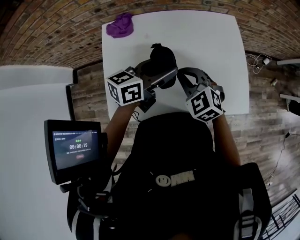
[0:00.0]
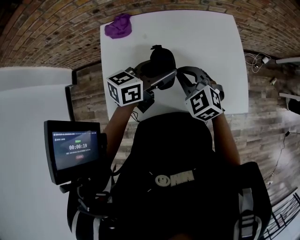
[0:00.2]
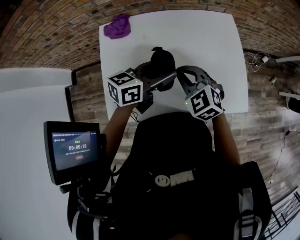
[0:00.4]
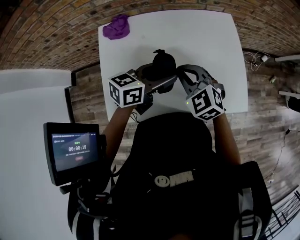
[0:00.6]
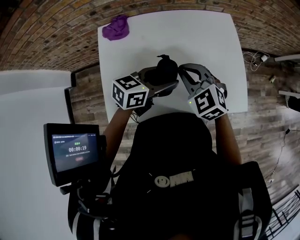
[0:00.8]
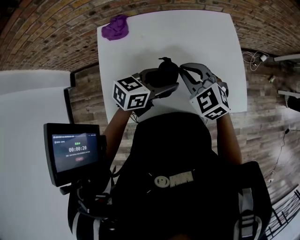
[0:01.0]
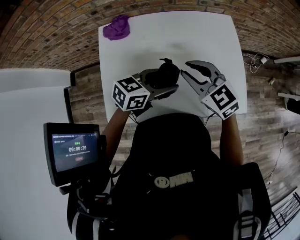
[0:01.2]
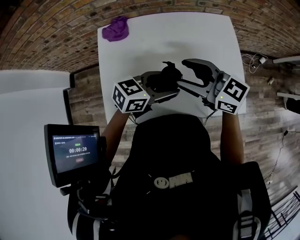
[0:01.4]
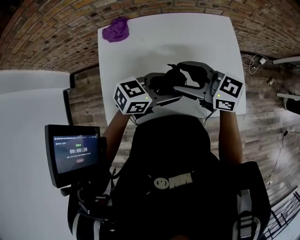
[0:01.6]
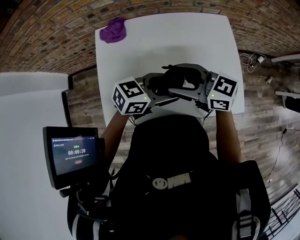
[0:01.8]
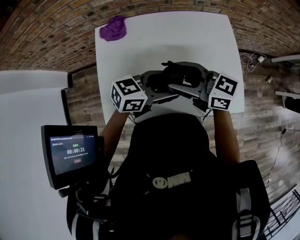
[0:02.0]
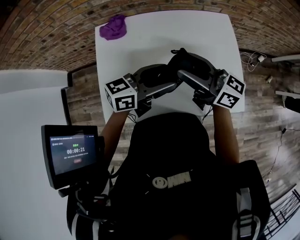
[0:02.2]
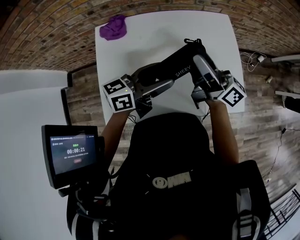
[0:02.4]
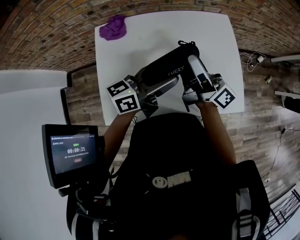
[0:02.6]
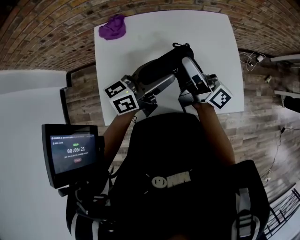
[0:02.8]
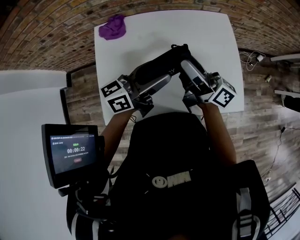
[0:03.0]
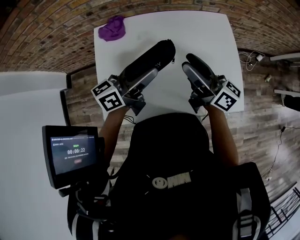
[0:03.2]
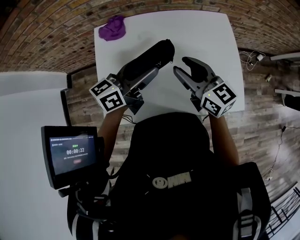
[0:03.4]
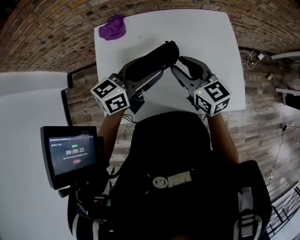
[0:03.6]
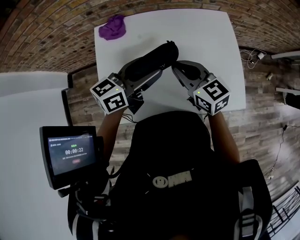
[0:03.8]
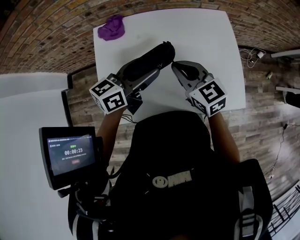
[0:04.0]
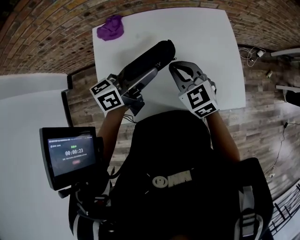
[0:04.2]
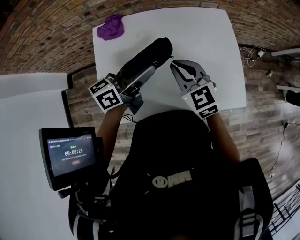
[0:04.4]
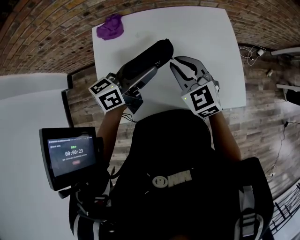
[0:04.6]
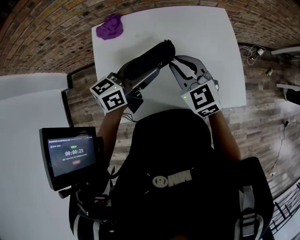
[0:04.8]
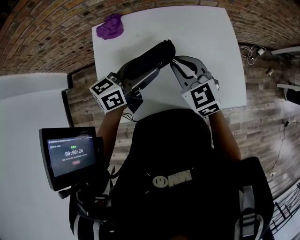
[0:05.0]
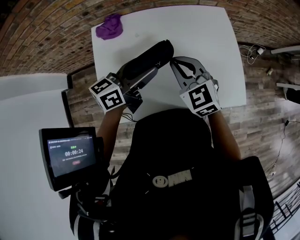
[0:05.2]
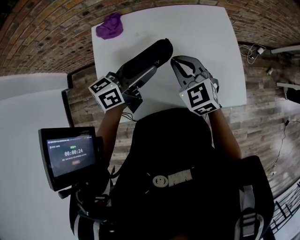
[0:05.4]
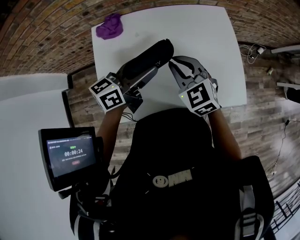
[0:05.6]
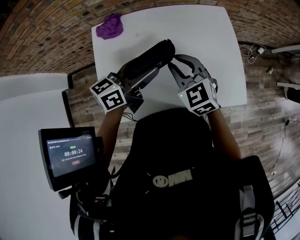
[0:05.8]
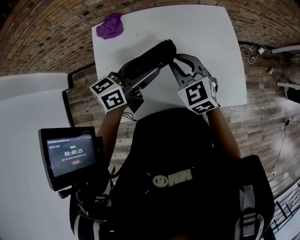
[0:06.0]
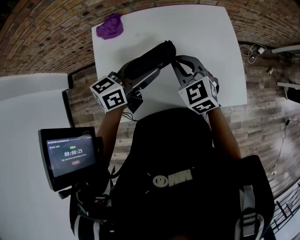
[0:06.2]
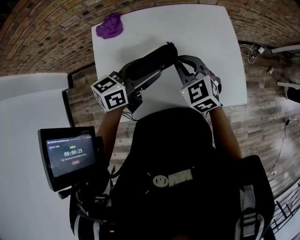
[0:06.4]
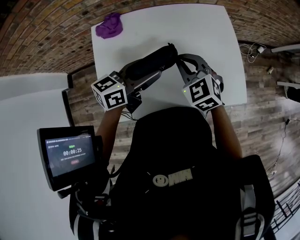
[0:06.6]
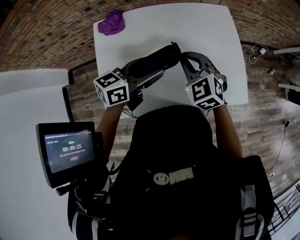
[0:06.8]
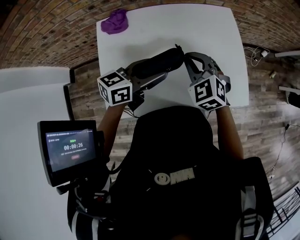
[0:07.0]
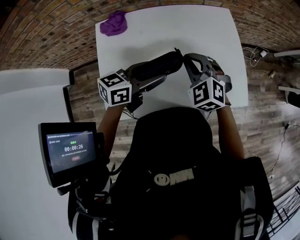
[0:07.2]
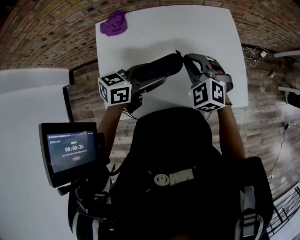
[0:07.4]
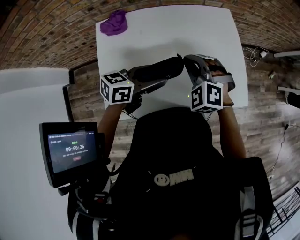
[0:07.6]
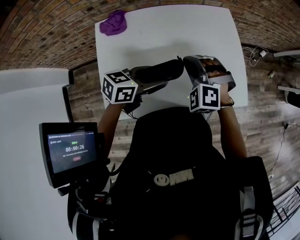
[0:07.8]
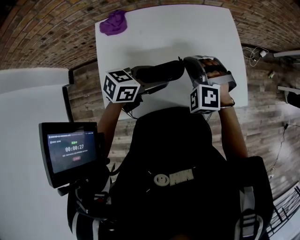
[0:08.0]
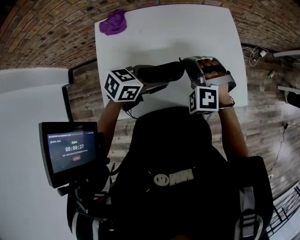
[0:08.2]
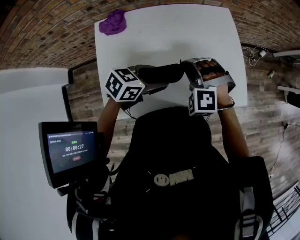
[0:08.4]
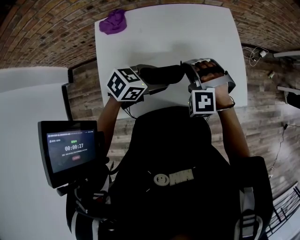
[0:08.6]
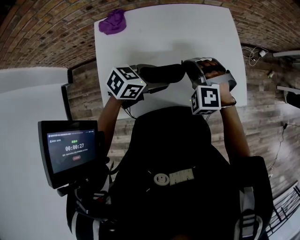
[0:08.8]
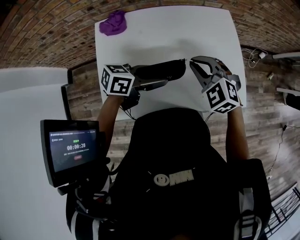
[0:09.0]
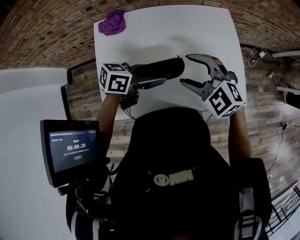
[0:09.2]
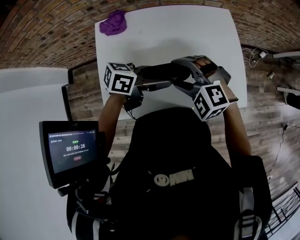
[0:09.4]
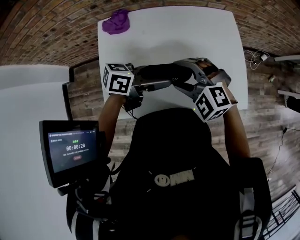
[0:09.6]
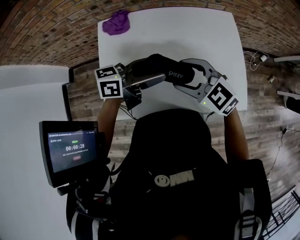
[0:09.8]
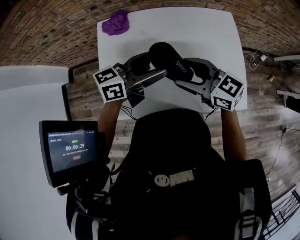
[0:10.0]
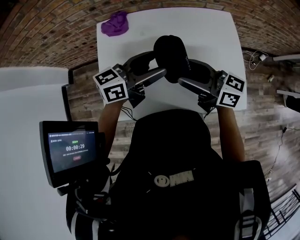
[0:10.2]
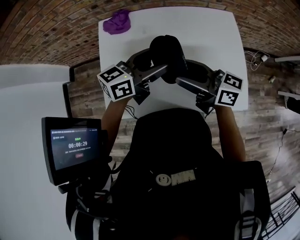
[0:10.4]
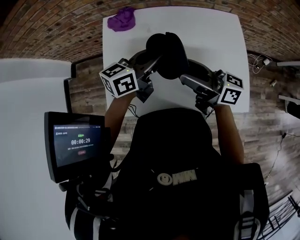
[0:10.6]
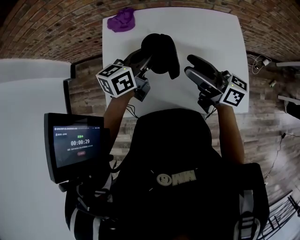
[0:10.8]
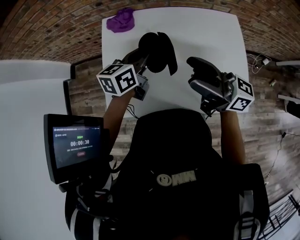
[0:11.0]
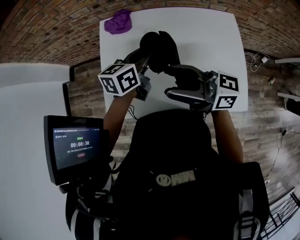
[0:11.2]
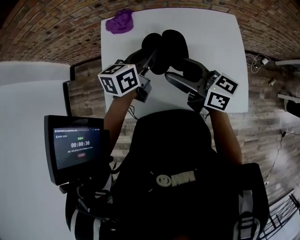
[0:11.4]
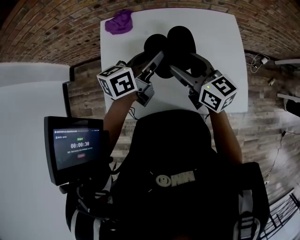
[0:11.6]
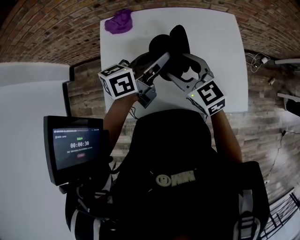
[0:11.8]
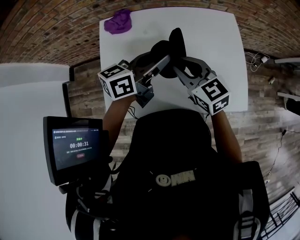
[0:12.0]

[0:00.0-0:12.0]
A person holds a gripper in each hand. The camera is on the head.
0:00.0 to 0:01.6: The right gripper moves upward, about 10 cm, rotates approximately 50 degrees, and opens up. The left gripper shifts by about 10 cm, and turns by approximately 30 degrees.
0:01.6 to 0:03.0: The right gripper shifts by approximately 5 cm, and tilts its fingers some 30 degrees upward. Meanwhile the left gripper shifts by approximately 10 cm, and turns by some 40 degrees.
0:03.0 to 0:04.4: The right gripper moves downward, some 10 cm, tips its fingers downward by roughly 50 degrees, and closes its fingers.
0:04.4 to 0:06.0: The grippers stay close to where they were, moving slightly.
0:06.0 to 0:07.6: The left gripper heads downward, covering about 5 cm, and rotates roughly 20 degrees; the right gripper turns by about 30 degrees.
0:09.0 to 0:10.4: The left gripper shifts approximately 5 cm upward, and turns by approximately 30 degrees; the right gripper moves about 10 cm, tilts its fingers approximately 40 degrees upward, and opens its fingers.
0:10.4 to 0:12.0: The left gripper closes; the right gripper swivels roughly 50 degrees, and closes its fingers.

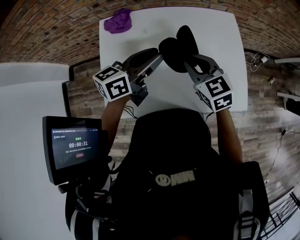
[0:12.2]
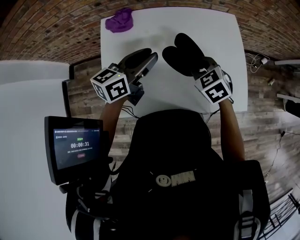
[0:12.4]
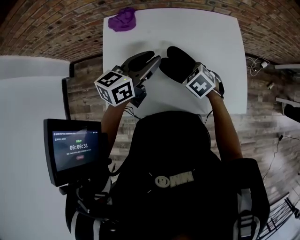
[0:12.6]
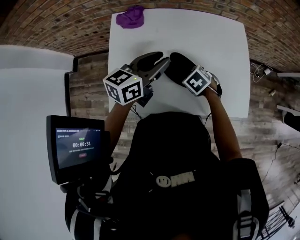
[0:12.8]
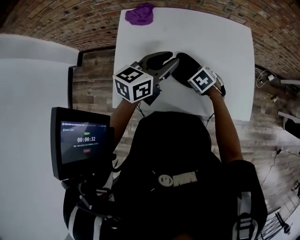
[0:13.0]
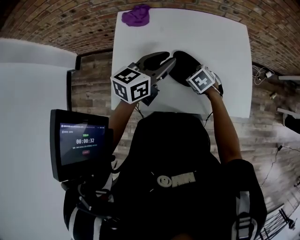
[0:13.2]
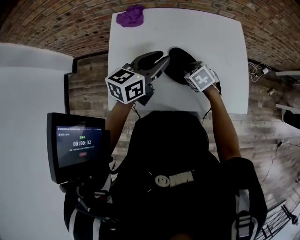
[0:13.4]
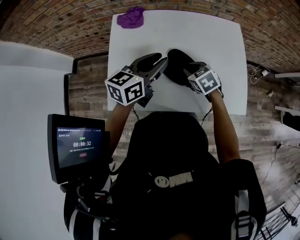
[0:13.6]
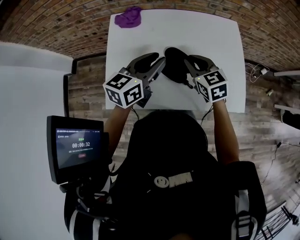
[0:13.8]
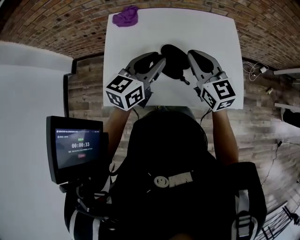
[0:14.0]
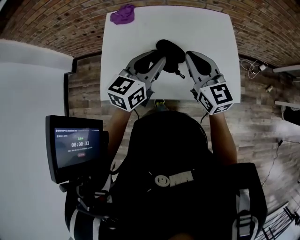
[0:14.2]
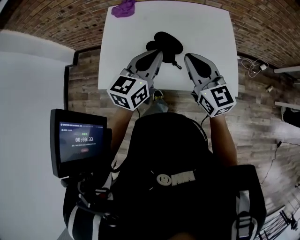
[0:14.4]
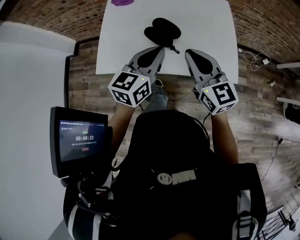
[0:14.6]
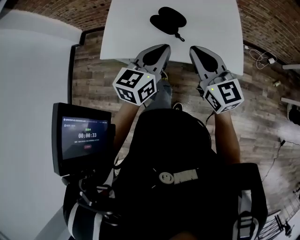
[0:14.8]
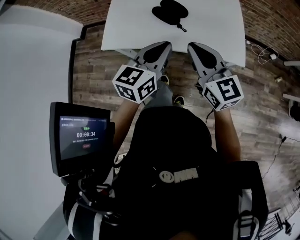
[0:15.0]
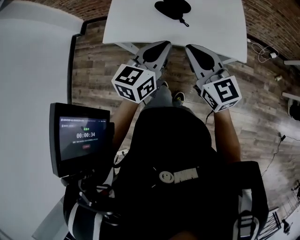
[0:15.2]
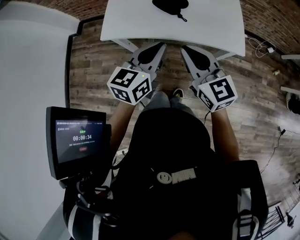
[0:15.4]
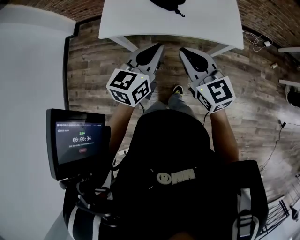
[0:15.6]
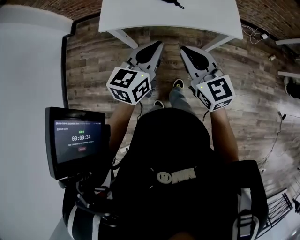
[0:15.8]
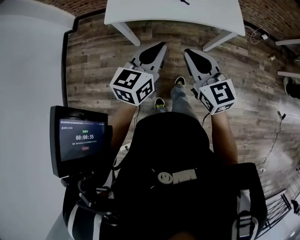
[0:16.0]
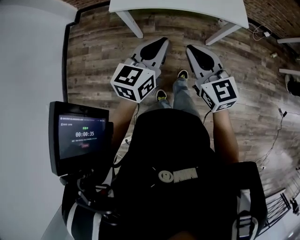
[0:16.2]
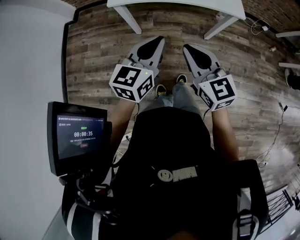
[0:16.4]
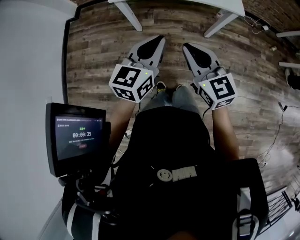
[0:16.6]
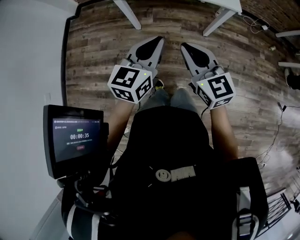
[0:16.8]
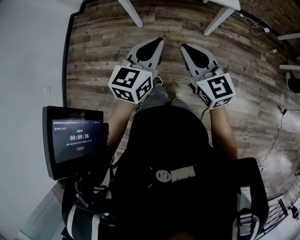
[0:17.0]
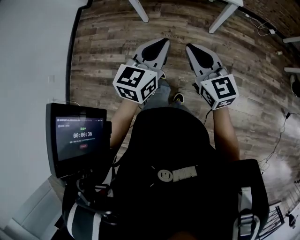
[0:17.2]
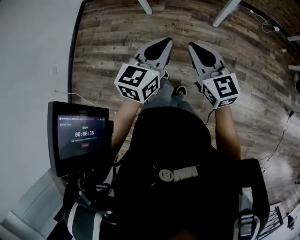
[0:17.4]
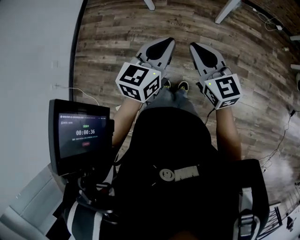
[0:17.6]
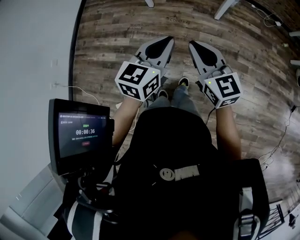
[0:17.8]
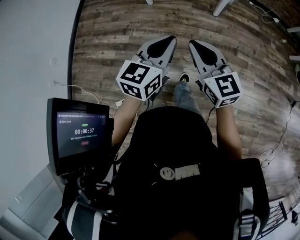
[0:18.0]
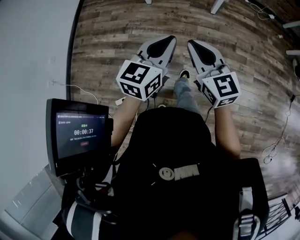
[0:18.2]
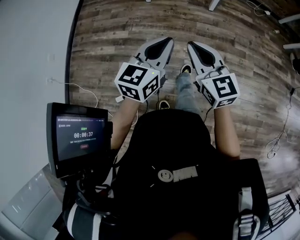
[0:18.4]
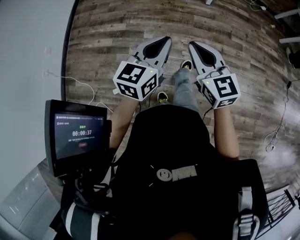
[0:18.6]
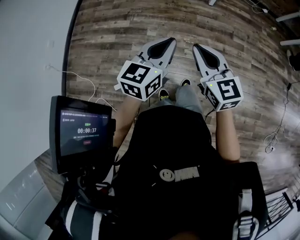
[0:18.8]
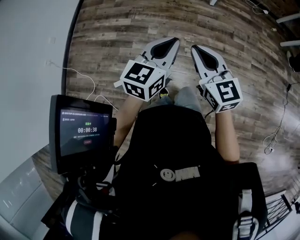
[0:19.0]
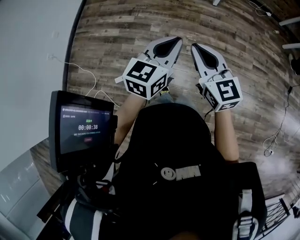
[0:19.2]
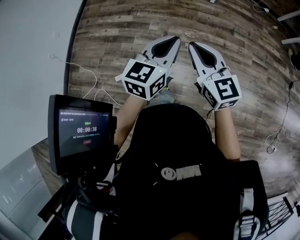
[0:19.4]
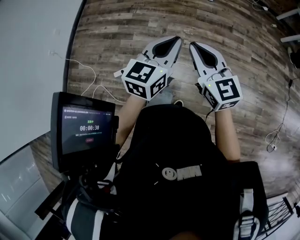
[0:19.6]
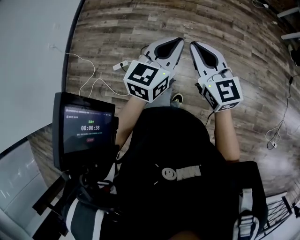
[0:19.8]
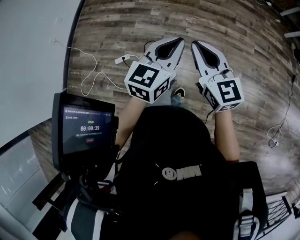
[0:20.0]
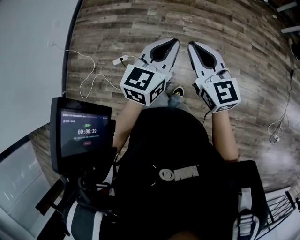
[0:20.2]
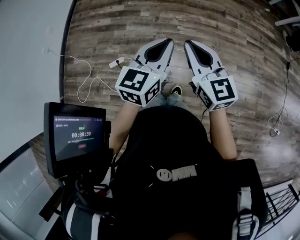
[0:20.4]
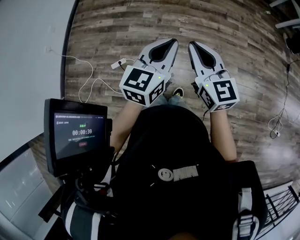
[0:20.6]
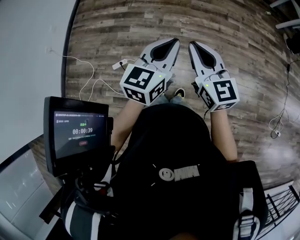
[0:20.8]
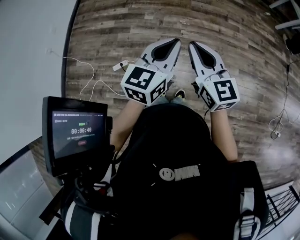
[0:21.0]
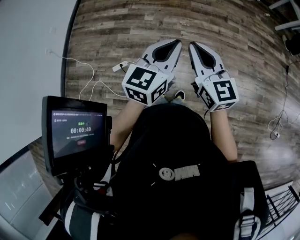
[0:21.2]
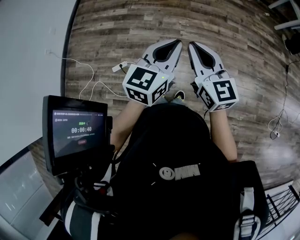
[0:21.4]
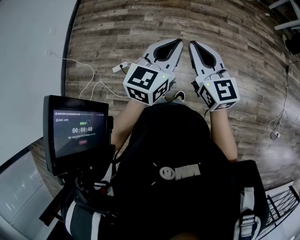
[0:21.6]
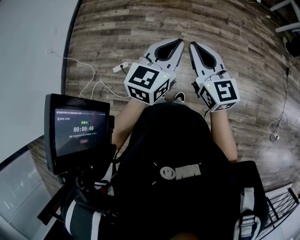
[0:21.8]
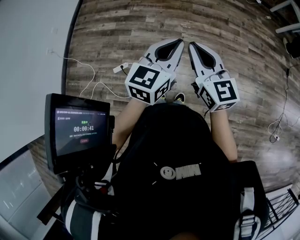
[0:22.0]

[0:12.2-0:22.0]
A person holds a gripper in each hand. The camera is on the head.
0:12.2 to 0:13.6: The right gripper is displaced downward by roughly 15 cm, and rotates approximately 20 degrees.
0:13.6 to 0:15.0: The left gripper travels backward by about 30 cm; the right gripper moves backward and upward, approximately 35 cm, and points its fingers about 50 degrees further upward.
0:15.0 to 0:16.4: The right gripper shifts about 30 cm backward. The left gripper goes about 30 cm backward and to the left.
0:16.4 to 0:17.8: Both grippers travel together backward, some 30 cm.
0:17.8 to 0:19.2: The two grippers go approximately 35 cm backward.
0:19.2 to 0:20.6: Both grippers move backward, roughly 20 cm.
0:20.6 to 0:22.0: Both grippers stay about where they are.

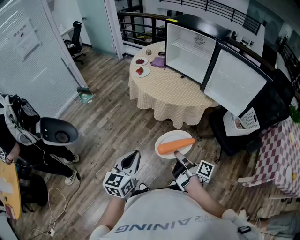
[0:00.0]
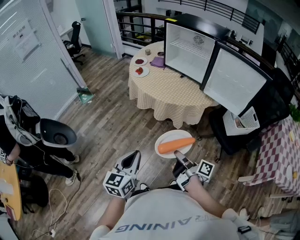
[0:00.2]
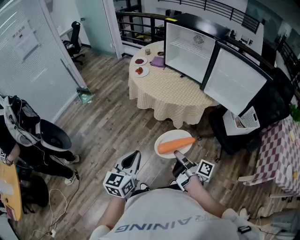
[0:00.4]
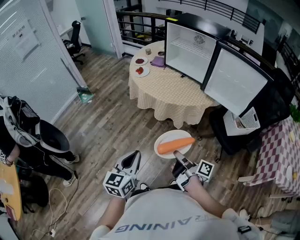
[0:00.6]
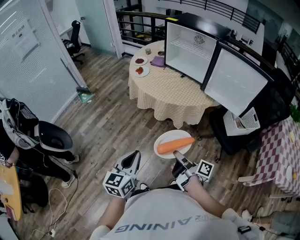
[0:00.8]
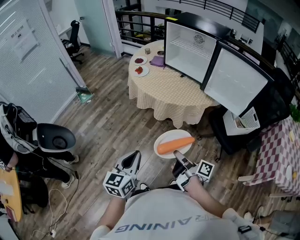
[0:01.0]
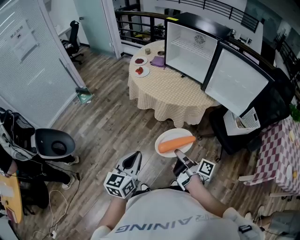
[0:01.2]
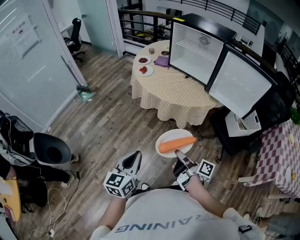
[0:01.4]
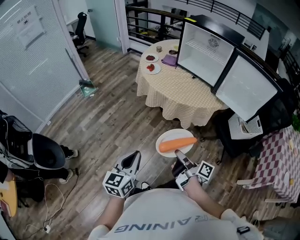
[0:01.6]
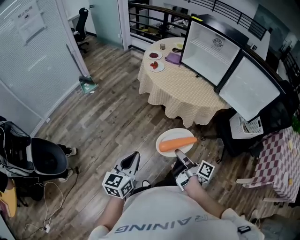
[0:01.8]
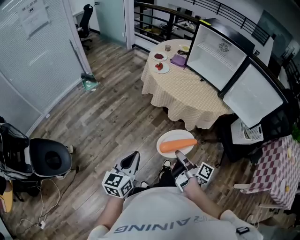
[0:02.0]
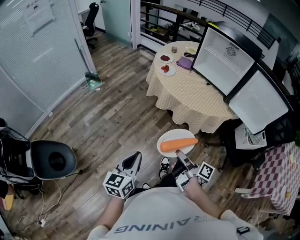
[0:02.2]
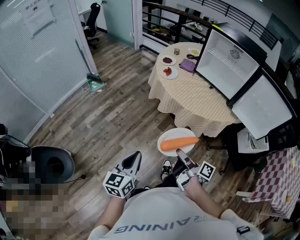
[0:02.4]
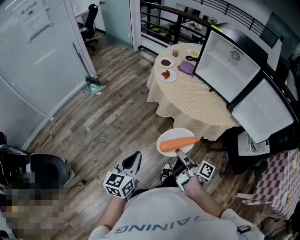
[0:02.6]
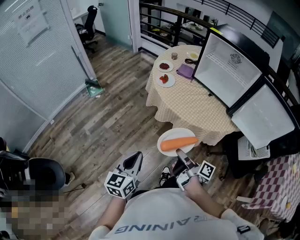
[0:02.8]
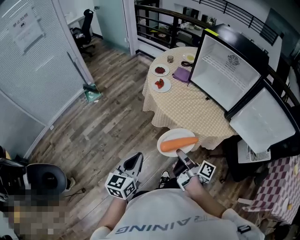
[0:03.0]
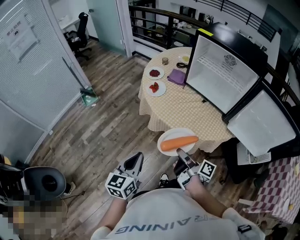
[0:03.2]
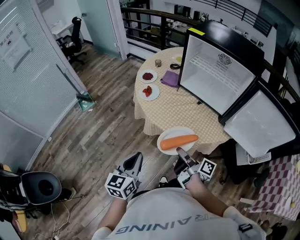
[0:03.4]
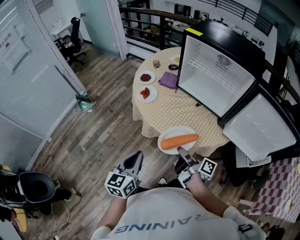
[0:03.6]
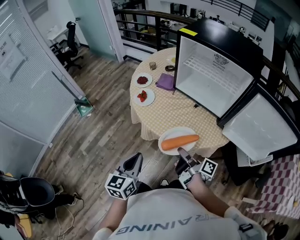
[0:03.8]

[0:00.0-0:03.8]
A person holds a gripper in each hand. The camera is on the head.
0:01.2 to 0:02.6: The left gripper shifts by about 15 cm.
0:02.6 to 0:03.8: The left gripper shifts by some 25 cm.
